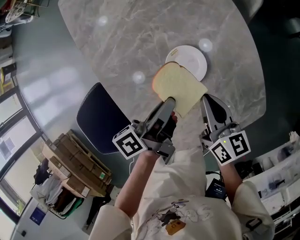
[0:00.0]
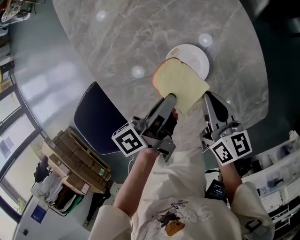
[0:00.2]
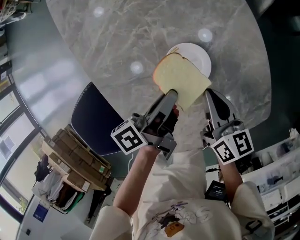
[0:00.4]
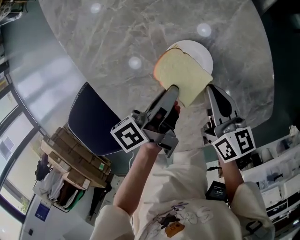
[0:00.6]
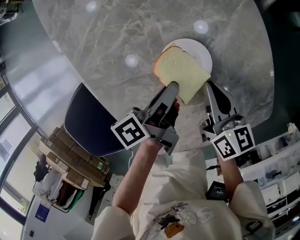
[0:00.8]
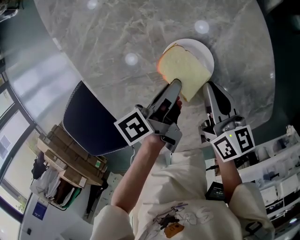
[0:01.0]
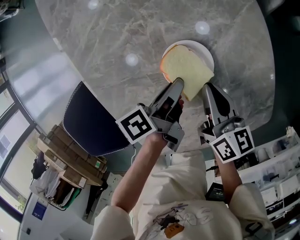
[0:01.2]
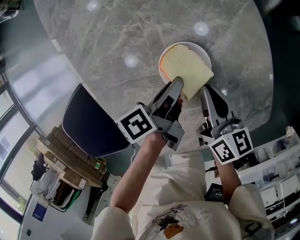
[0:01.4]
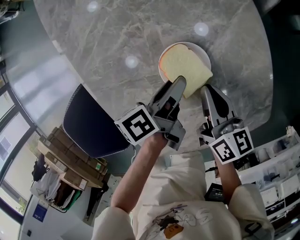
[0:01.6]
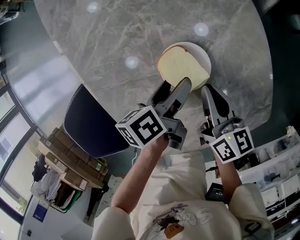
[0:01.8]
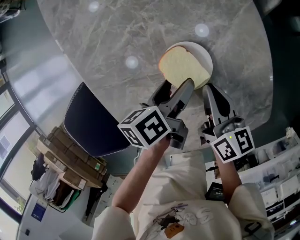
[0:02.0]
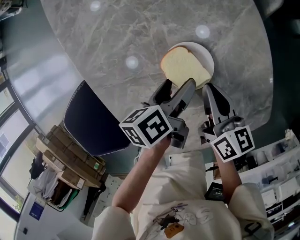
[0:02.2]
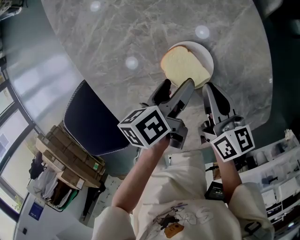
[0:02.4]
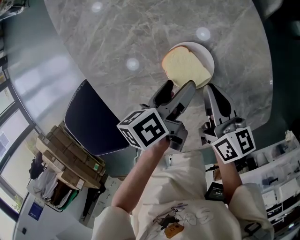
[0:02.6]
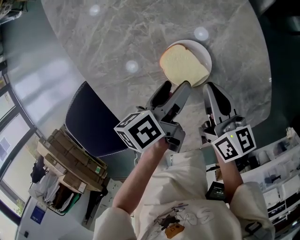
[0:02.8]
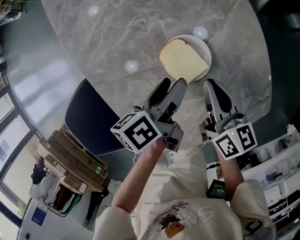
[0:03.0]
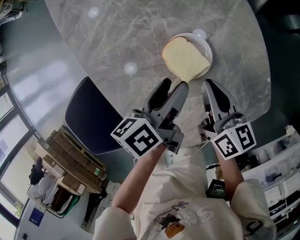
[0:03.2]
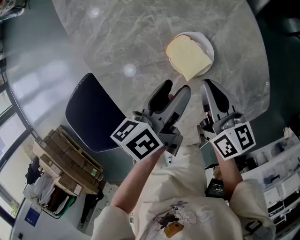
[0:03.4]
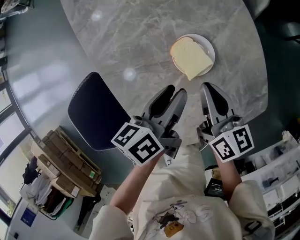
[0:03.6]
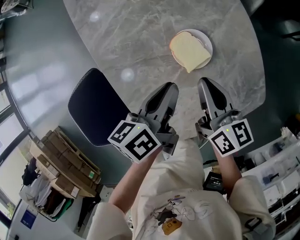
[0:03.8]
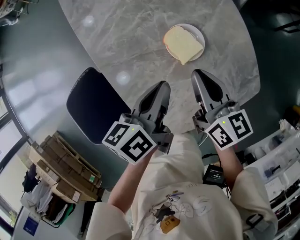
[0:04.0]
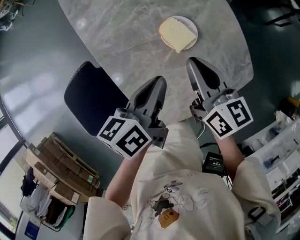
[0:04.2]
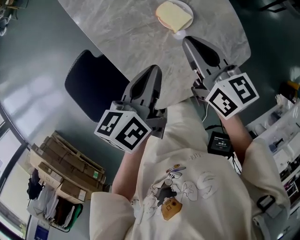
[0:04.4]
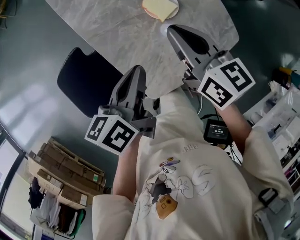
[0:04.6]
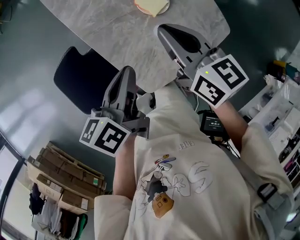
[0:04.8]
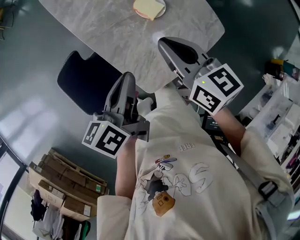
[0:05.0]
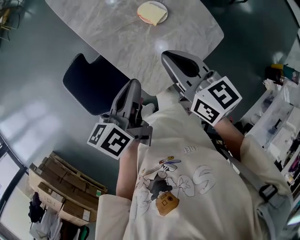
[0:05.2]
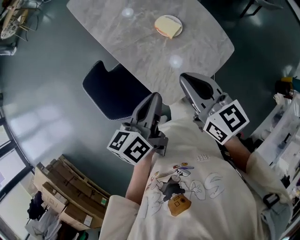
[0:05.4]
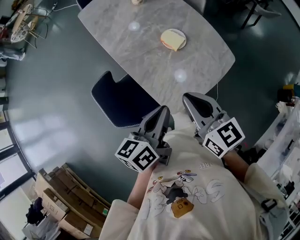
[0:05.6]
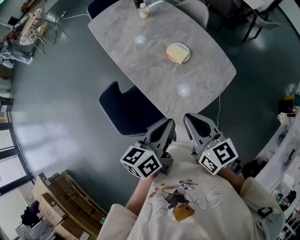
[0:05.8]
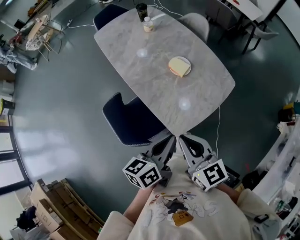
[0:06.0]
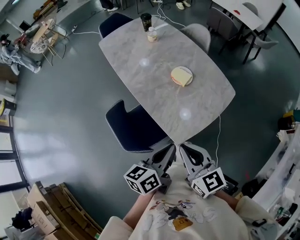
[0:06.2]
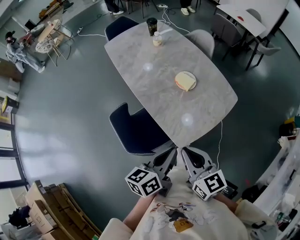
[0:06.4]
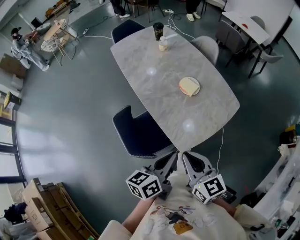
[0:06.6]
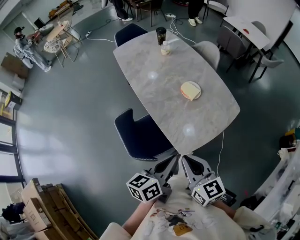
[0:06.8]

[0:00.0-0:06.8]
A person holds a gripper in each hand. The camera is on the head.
0:00.0 to 0:01.4: The right gripper is displaced downward by approximately 5 cm.
0:02.8 to 0:04.0: The right gripper shifts some 10 cm upward.
0:04.0 to 0:05.4: The right gripper changes place by some 30 cm.
0:05.4 to 0:06.8: The right gripper shifts by approximately 15 cm.

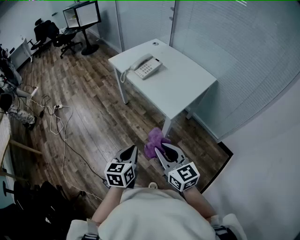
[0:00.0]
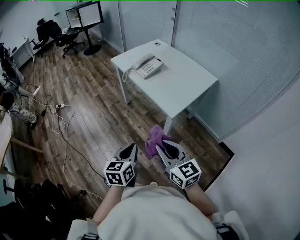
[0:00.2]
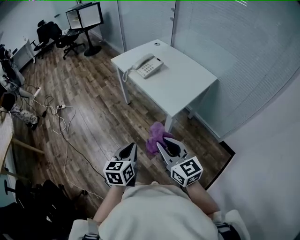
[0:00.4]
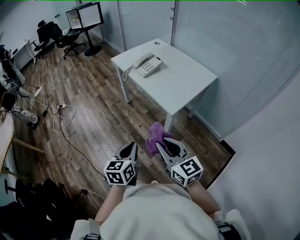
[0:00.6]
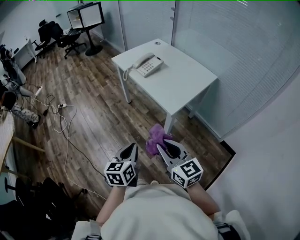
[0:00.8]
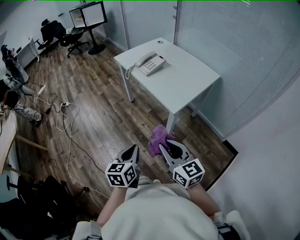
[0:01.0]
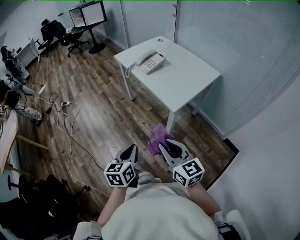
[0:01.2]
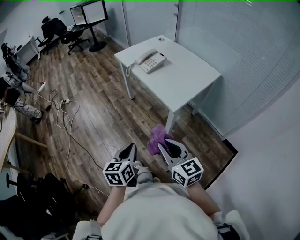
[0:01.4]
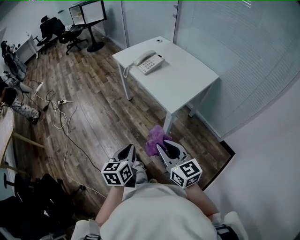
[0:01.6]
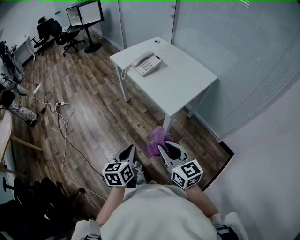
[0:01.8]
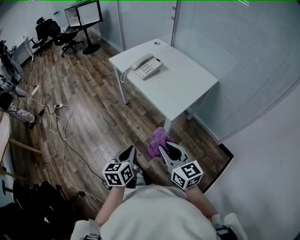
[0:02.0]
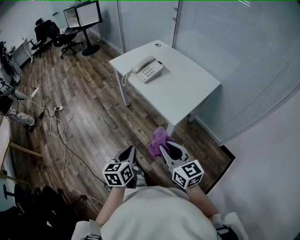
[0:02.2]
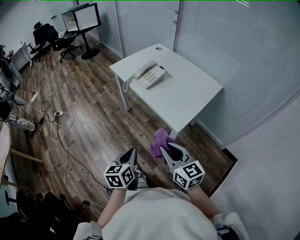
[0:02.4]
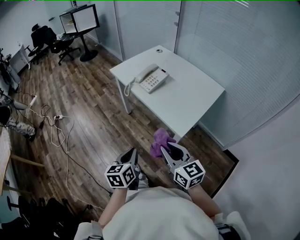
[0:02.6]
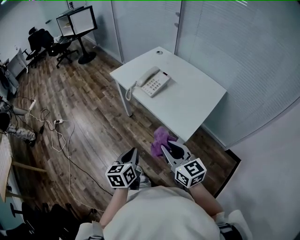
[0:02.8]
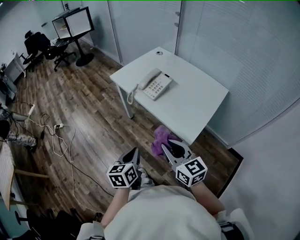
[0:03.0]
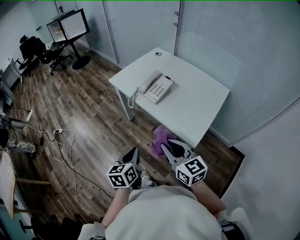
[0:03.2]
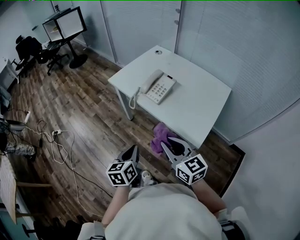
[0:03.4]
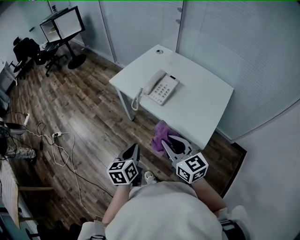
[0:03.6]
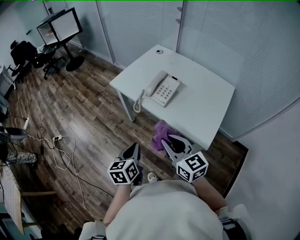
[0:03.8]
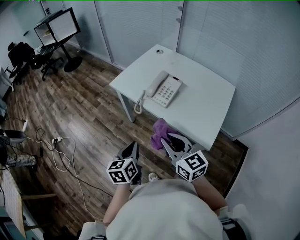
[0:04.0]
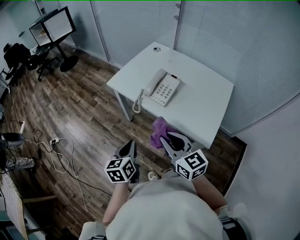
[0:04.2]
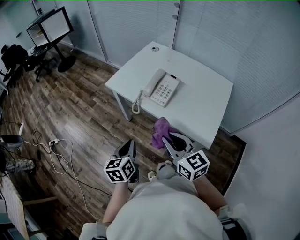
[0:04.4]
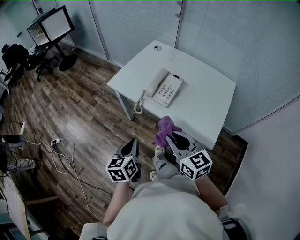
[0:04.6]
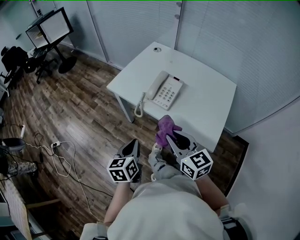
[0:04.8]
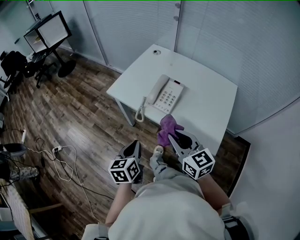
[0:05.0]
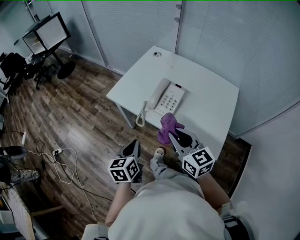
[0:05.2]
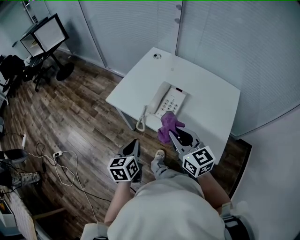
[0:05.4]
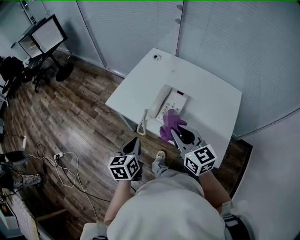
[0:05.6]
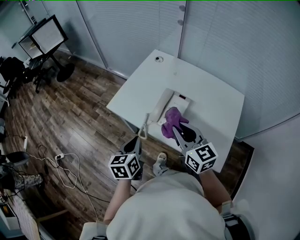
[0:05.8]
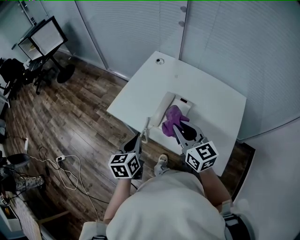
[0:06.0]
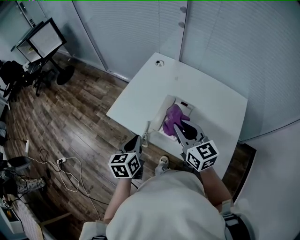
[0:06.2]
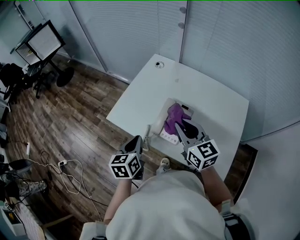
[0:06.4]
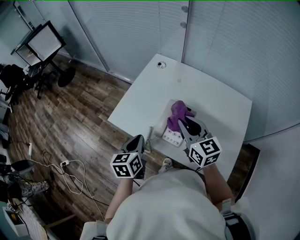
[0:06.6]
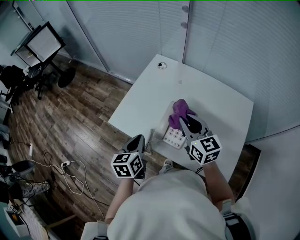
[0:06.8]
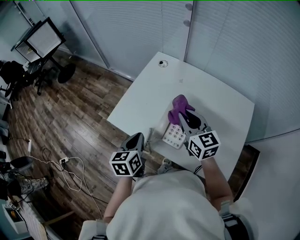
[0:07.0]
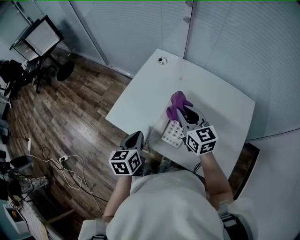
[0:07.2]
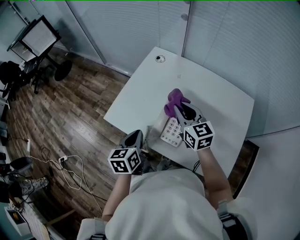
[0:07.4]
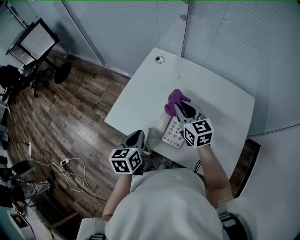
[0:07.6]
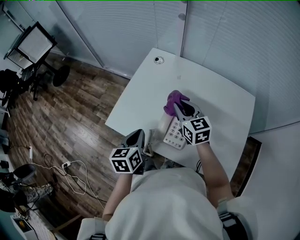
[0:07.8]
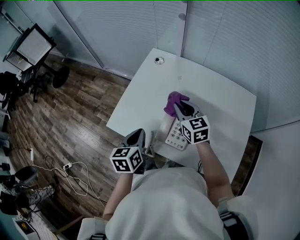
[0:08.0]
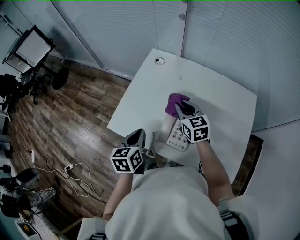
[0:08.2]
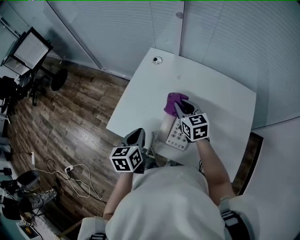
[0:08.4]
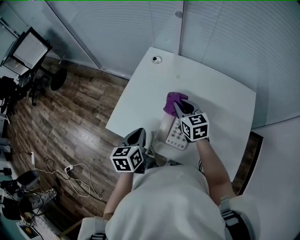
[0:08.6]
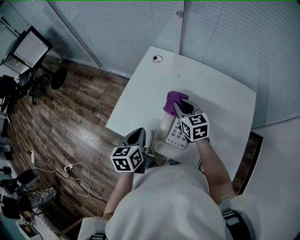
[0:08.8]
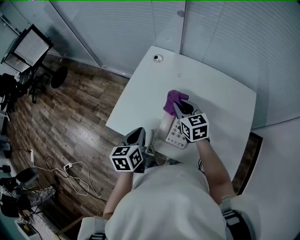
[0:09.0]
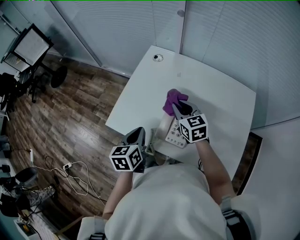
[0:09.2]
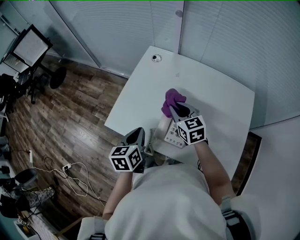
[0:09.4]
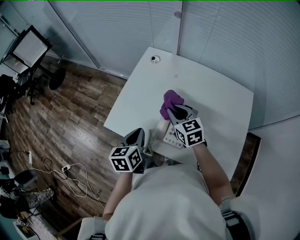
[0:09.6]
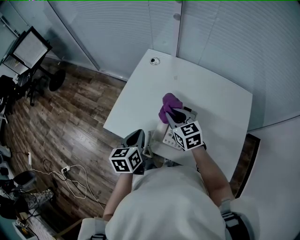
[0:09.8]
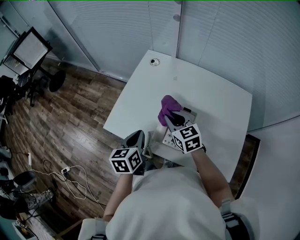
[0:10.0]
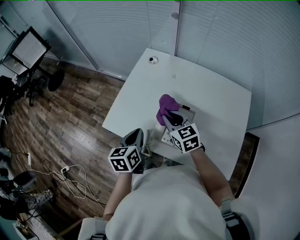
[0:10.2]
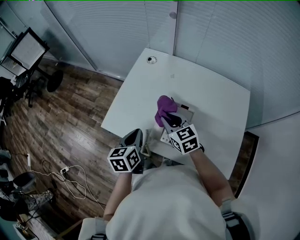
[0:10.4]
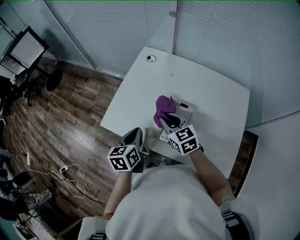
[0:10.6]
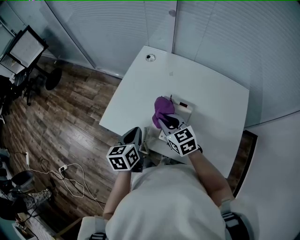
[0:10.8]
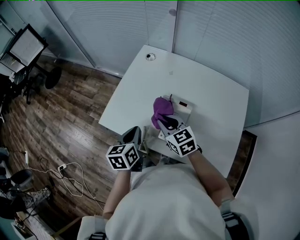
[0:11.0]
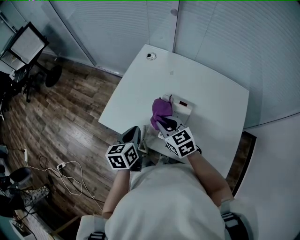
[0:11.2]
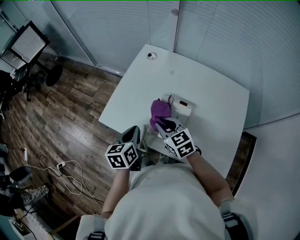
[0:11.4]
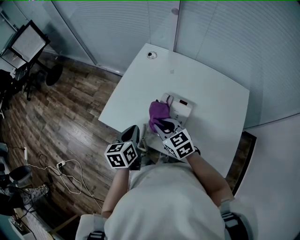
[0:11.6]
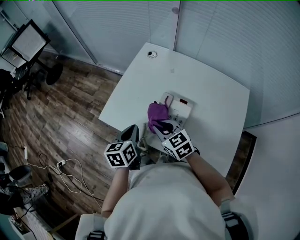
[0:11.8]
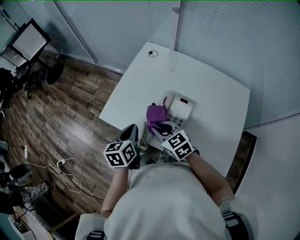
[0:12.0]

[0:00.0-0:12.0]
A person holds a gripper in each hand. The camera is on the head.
0:00.0 to 0:01.6: There are only small adjustments of the grippers.
0:01.6 to 0:03.0: The two grippers go about 25 cm forward.
0:03.0 to 0:04.4: The two grippers go some 20 cm forward and to the left.
0:04.4 to 0:06.0: The two grippers go roughly 25 cm forward.
0:06.0 to 0:07.6: The right gripper is displaced forward by about 15 cm. Meanwhile the left gripper moves forward, some 10 cm.
0:07.6 to 0:09.0: The grippers move only a little.
0:09.0 to 0:10.4: The right gripper moves backward, some 5 cm.
0:10.4 to 0:12.0: The right gripper goes approximately 10 cm backward and to the left.

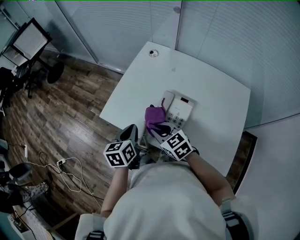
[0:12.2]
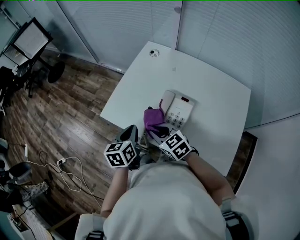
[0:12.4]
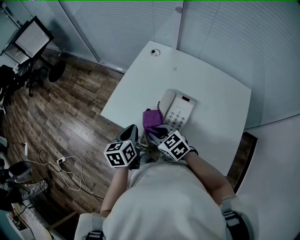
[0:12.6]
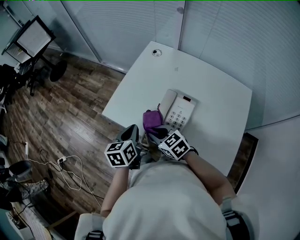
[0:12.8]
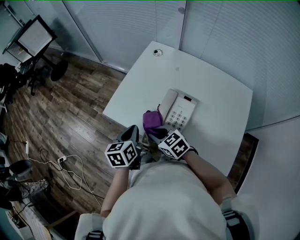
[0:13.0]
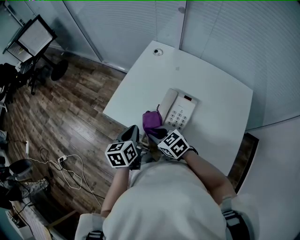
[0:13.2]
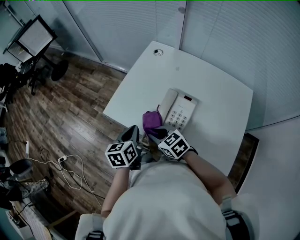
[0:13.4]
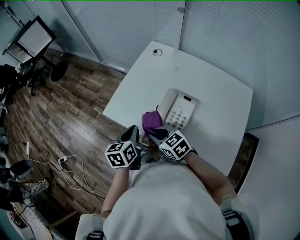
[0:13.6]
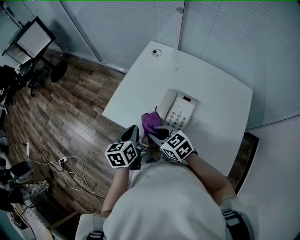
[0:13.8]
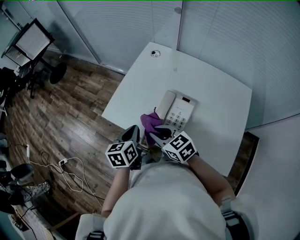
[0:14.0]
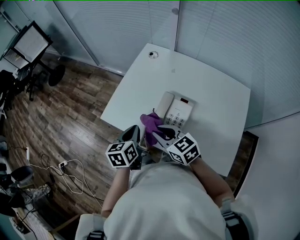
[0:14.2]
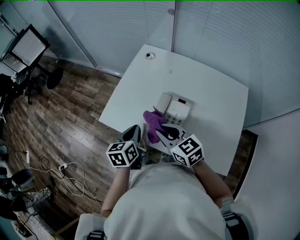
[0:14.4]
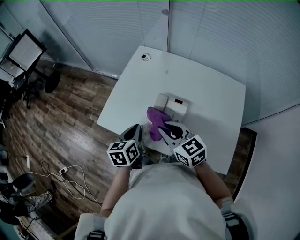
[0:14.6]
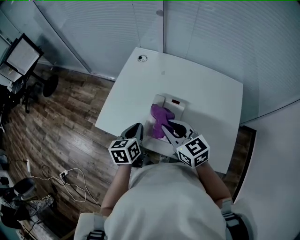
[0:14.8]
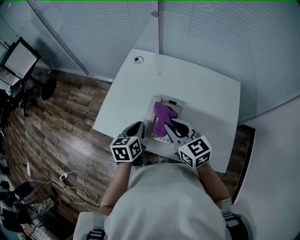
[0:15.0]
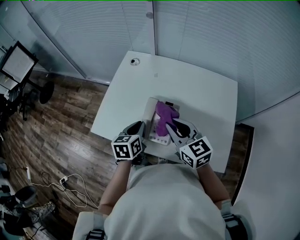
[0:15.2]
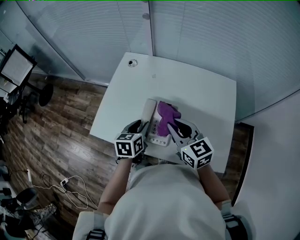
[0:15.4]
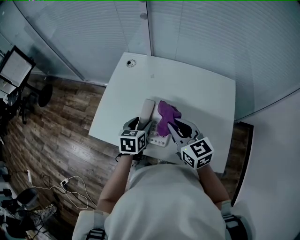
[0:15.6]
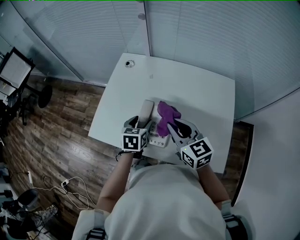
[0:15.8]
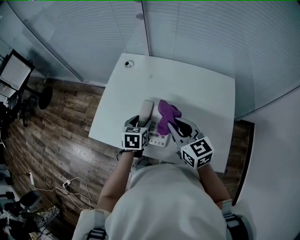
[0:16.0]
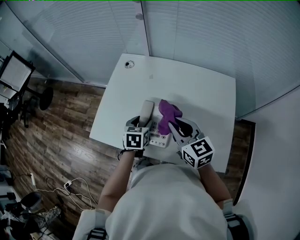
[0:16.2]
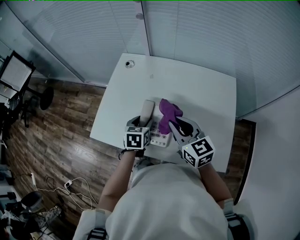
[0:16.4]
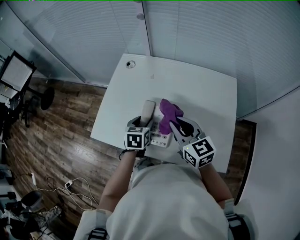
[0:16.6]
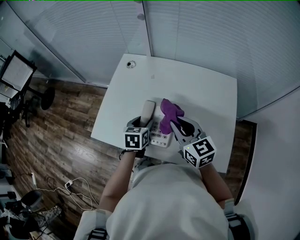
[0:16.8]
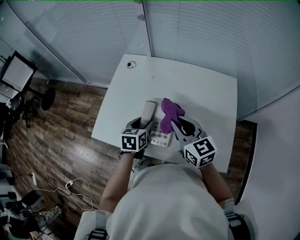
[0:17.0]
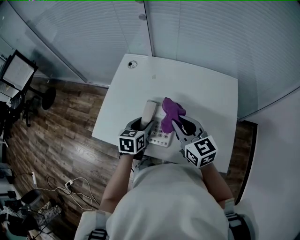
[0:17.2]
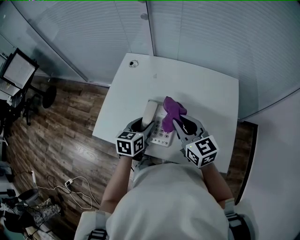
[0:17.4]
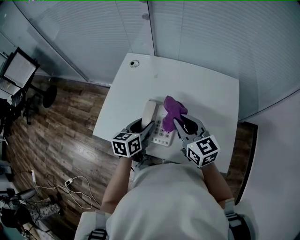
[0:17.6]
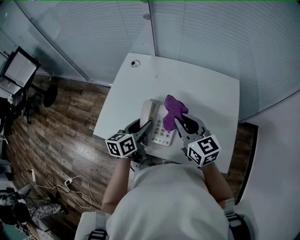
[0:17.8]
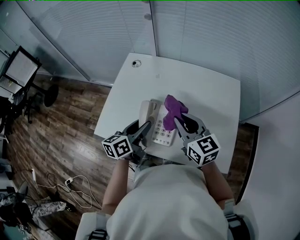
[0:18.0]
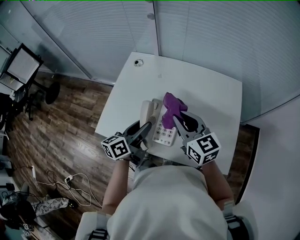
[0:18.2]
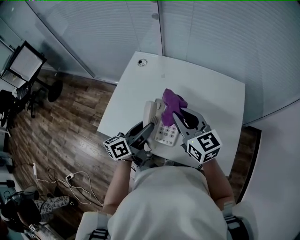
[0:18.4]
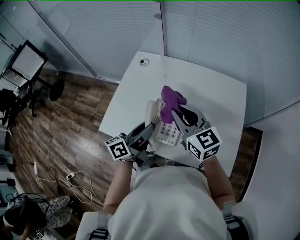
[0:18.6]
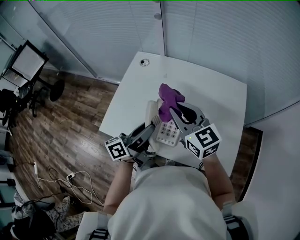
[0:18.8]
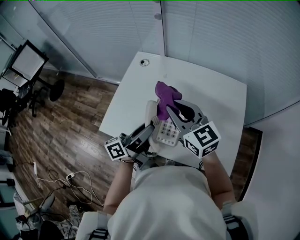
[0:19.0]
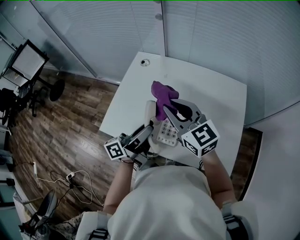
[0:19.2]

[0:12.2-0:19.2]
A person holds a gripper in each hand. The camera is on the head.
0:12.2 to 0:13.6: The grippers move only a little.
0:13.6 to 0:15.0: The left gripper heads to the right, covering about 10 cm; the right gripper heads to the right and upward, covering approximately 20 cm, and rotates roughly 30 degrees.
0:15.0 to 0:16.4: The right gripper shifts roughly 5 cm to the right; the left gripper is displaced to the right, forward and downward by some 10 cm, and opens its fingers.
0:16.4 to 0:17.8: The left gripper is displaced upward by about 5 cm, and rotates roughly 30 degrees.
0:17.8 to 0:19.2: The right gripper moves to the left and upward, approximately 10 cm, while the left gripper is displaced upward by roughly 10 cm, and tilts its fingers about 40 degrees upward.
